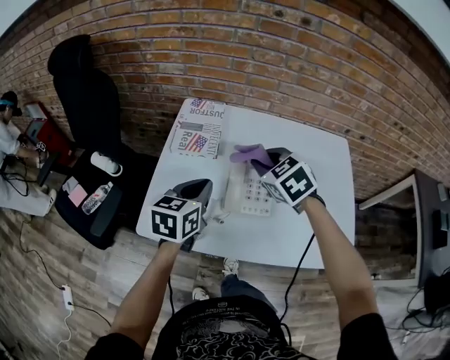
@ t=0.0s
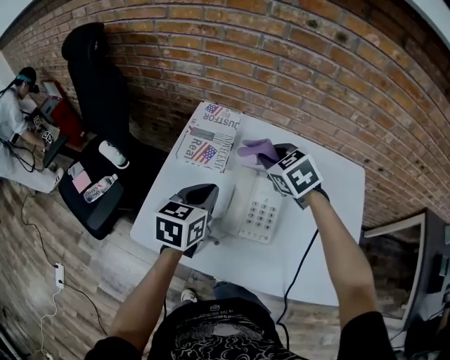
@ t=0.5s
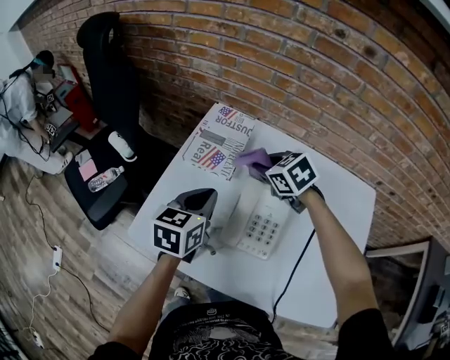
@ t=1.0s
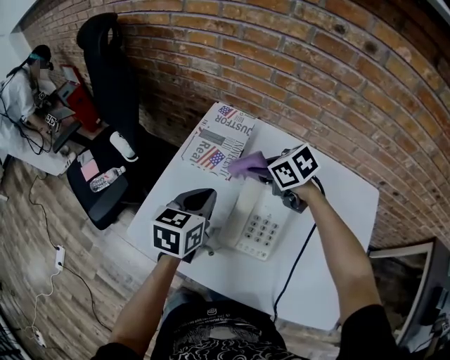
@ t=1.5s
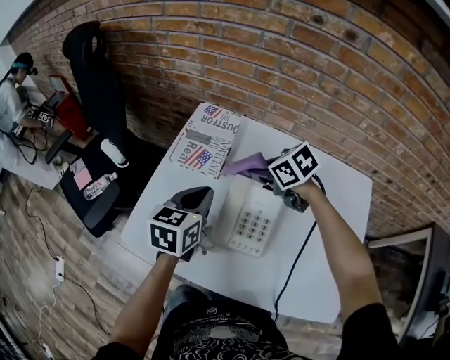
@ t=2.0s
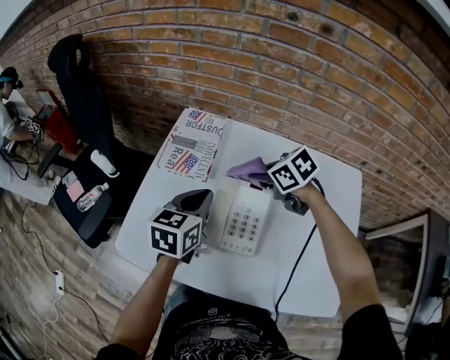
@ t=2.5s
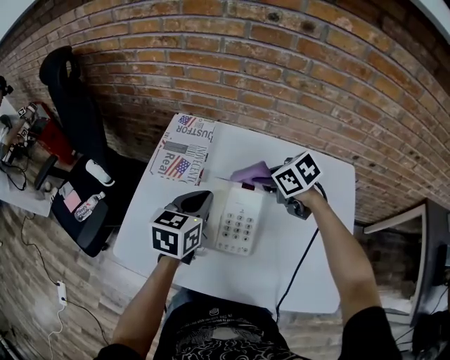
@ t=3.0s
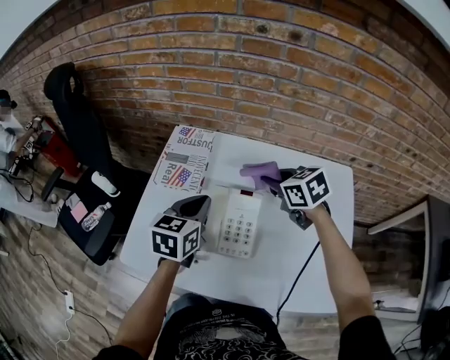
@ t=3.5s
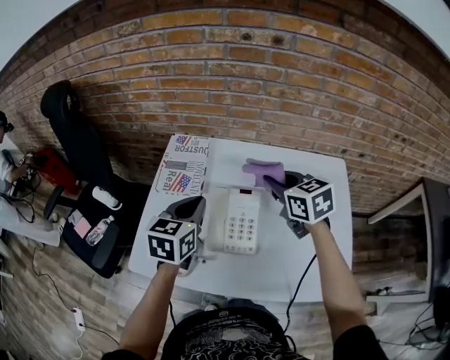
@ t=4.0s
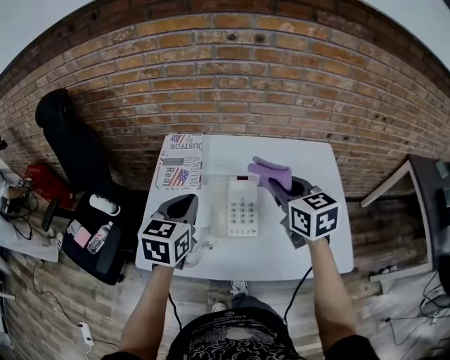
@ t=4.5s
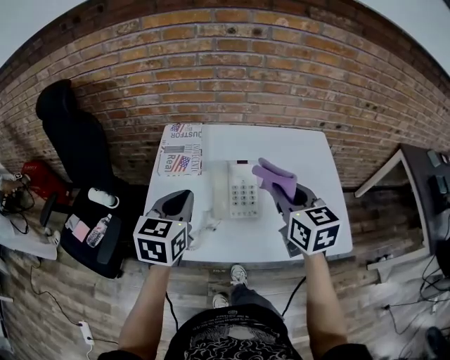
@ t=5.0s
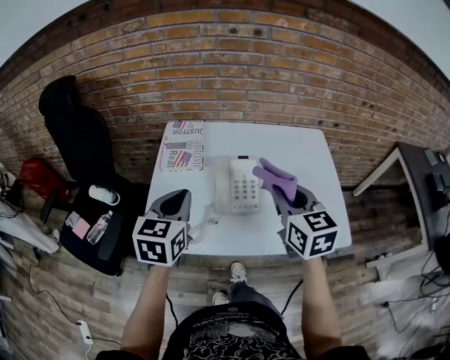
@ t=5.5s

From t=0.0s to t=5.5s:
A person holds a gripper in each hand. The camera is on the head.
From t=0.0s to t=2.0s: The left gripper moves about 10 cm; the right gripper ends up roughly 15 cm from where it was, and swivels approximately 30 degrees.
From t=2.0s to t=3.5s: The right gripper is displaced to the right and upward by about 10 cm, and rotates some 20 degrees, while the left gripper changes place by approximately 5 cm.
From t=3.5s to t=5.5s: The right gripper shifts some 25 cm backward and upward, and changes its angle by approximately 40 degrees; the left gripper travels backward, to the left and upward by roughly 20 cm.

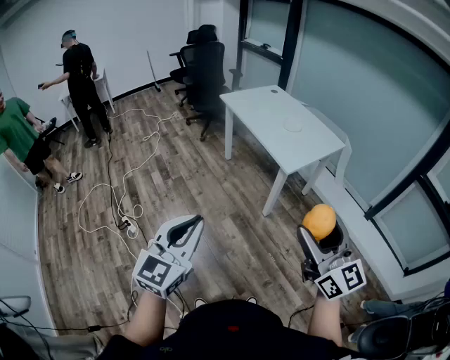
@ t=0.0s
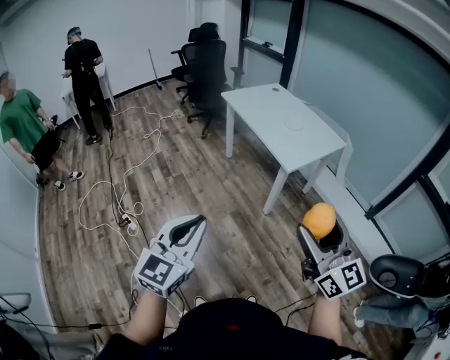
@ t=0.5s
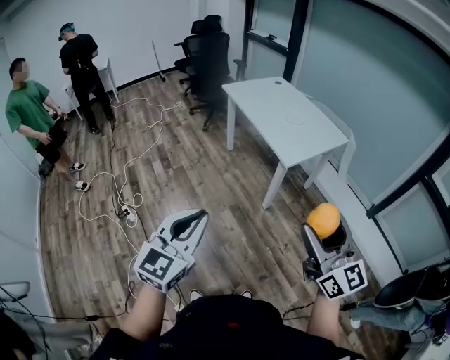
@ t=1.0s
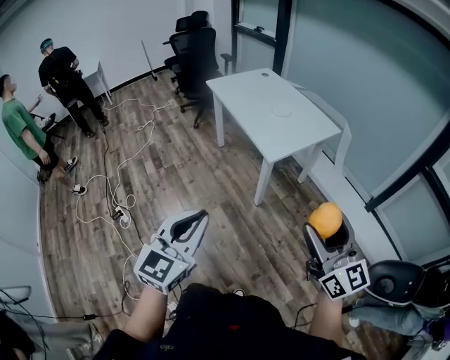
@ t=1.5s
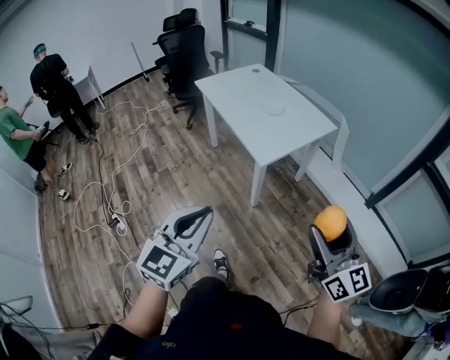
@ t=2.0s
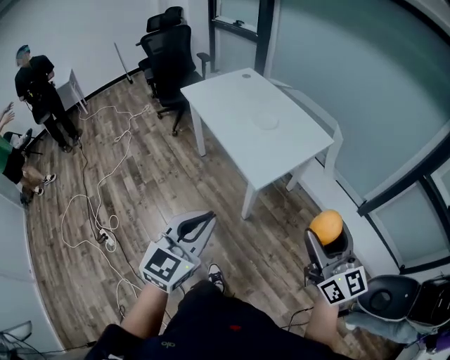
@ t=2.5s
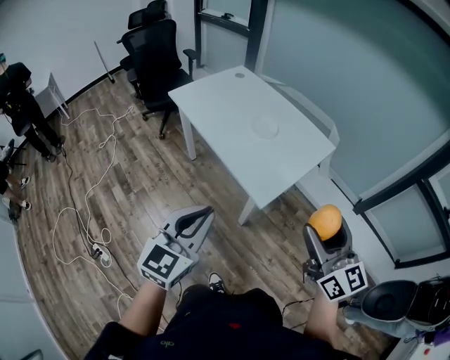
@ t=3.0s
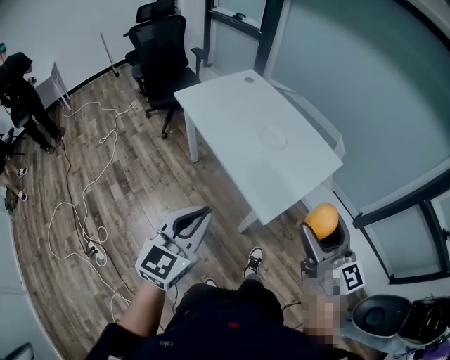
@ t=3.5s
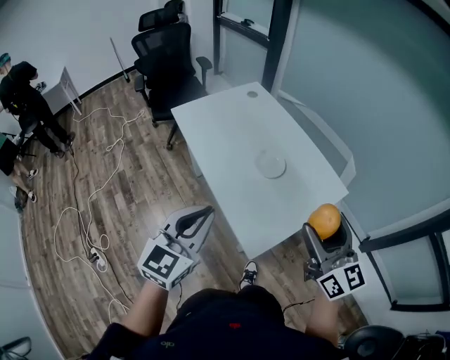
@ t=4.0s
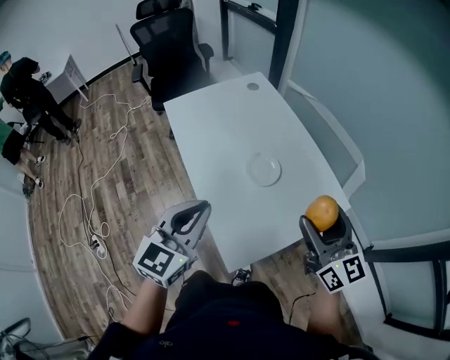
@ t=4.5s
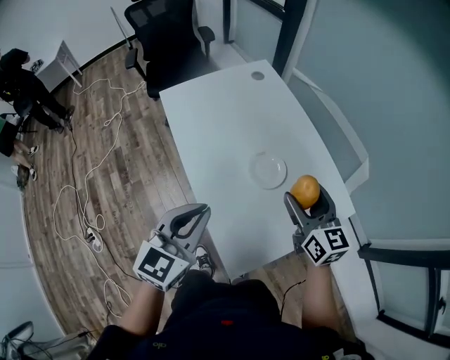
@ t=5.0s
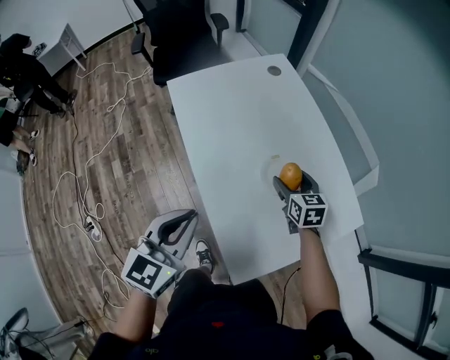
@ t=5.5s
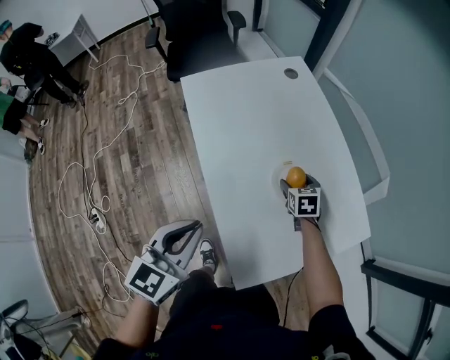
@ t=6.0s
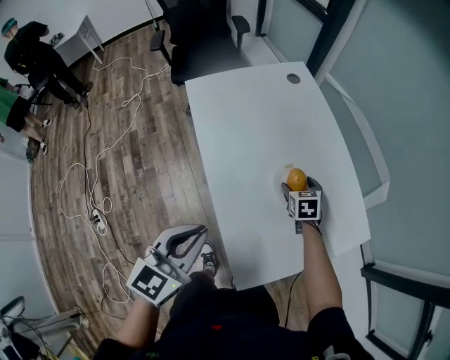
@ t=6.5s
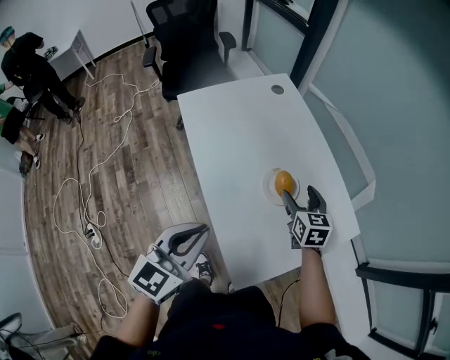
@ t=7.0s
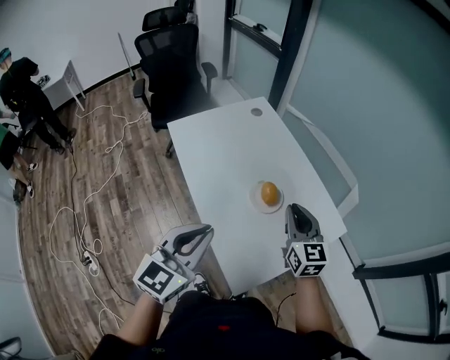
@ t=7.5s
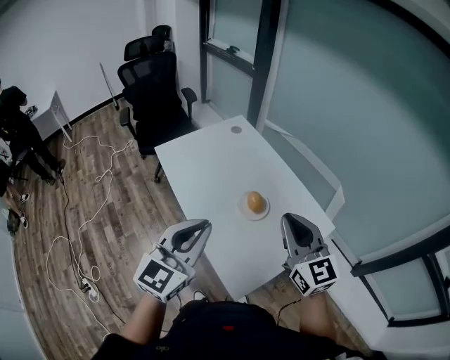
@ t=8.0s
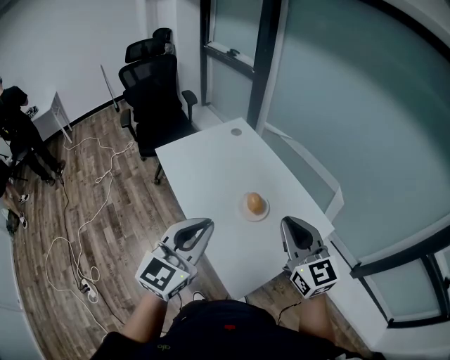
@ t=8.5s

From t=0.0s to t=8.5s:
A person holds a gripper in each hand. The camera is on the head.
From t=0.0s to t=2.0s: The grippers both shift to the right and forward by roughly 25 cm.
From t=2.0s to t=4.0s: The two grippers travel together, forward, about 50 cm.
From t=4.0s to t=6.5s: The left gripper is displaced forward and downward by roughly 20 cm; the right gripper shifts about 50 cm forward and downward, and points its fingers some 50 degrees further downward.
From t=6.5s to t=8.5s: The right gripper travels upward and backward by about 50 cm, tips its fingers upward by roughly 50 degrees, and closes up; the left gripper travels upward by some 15 cm, and rotates some 20 degrees.

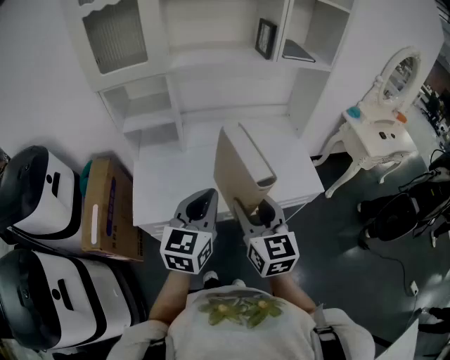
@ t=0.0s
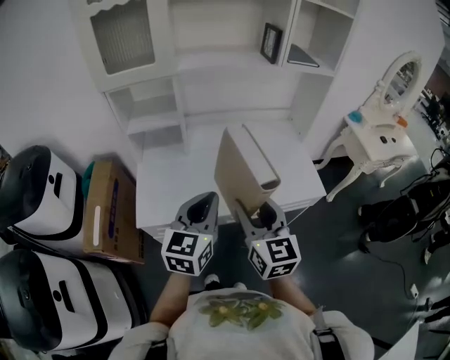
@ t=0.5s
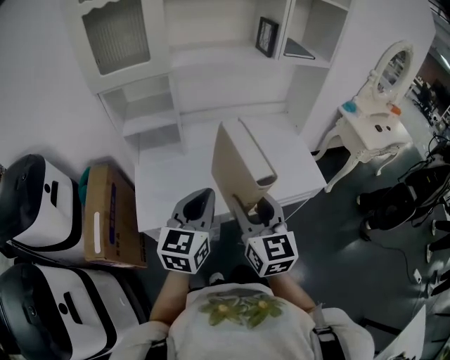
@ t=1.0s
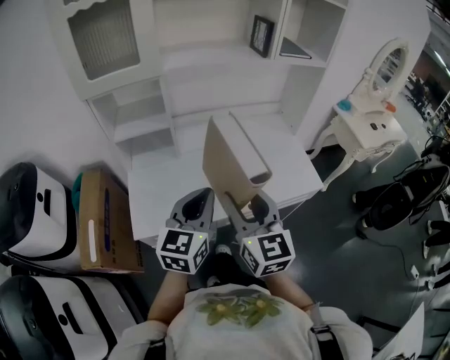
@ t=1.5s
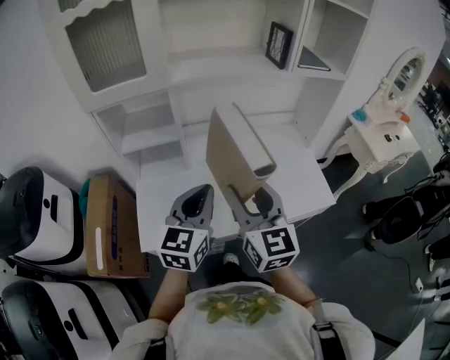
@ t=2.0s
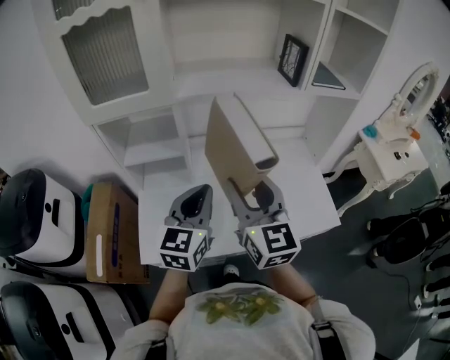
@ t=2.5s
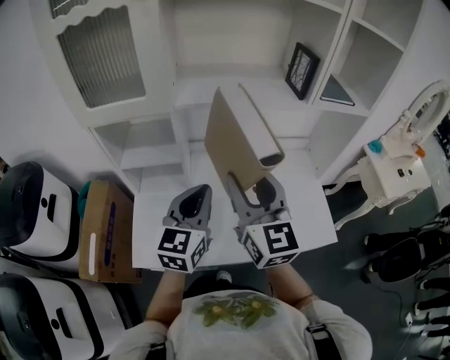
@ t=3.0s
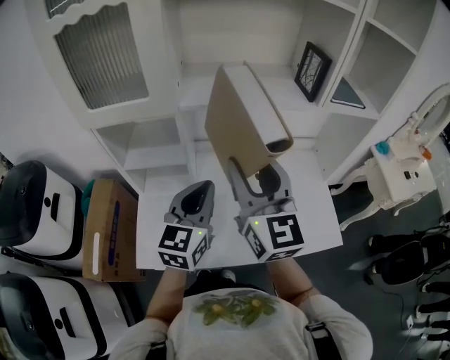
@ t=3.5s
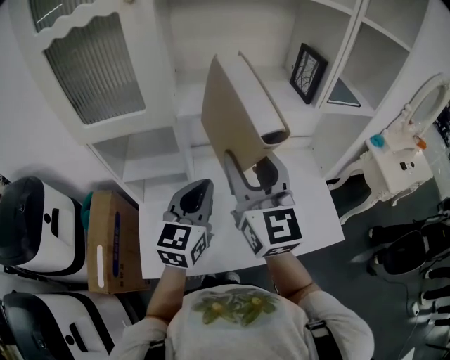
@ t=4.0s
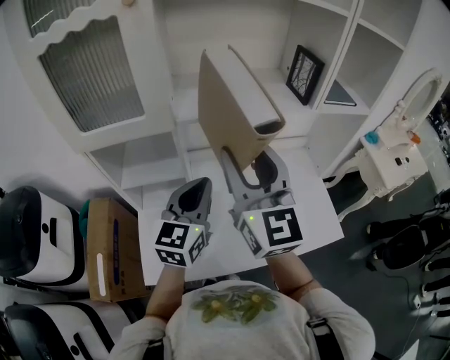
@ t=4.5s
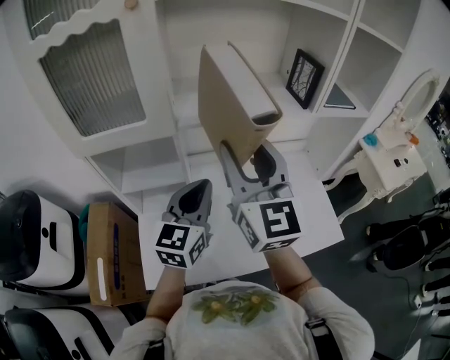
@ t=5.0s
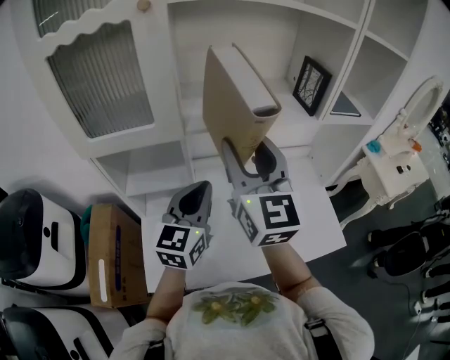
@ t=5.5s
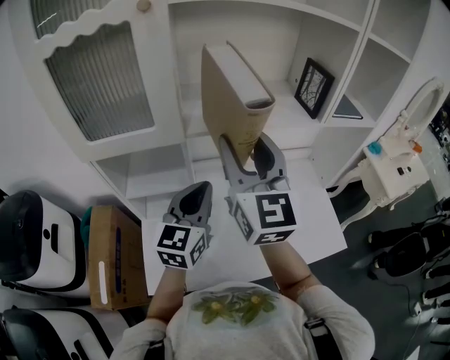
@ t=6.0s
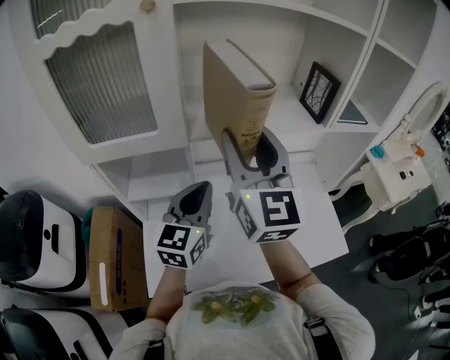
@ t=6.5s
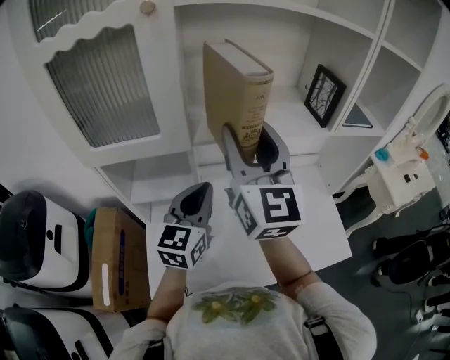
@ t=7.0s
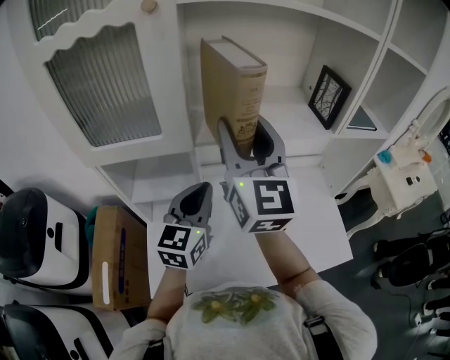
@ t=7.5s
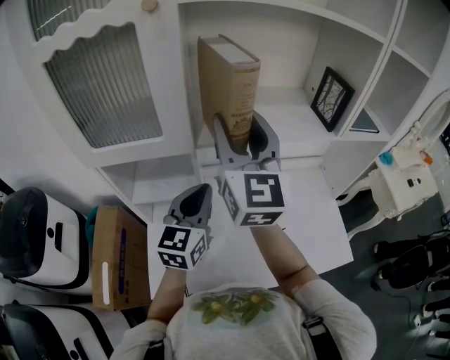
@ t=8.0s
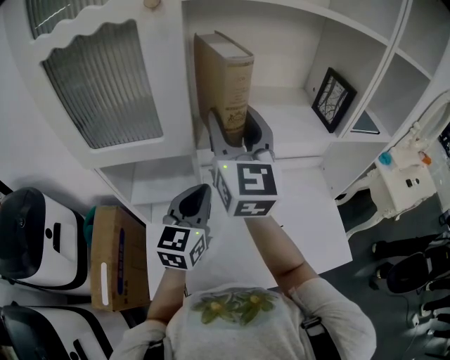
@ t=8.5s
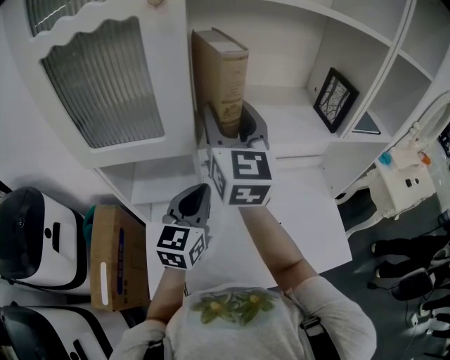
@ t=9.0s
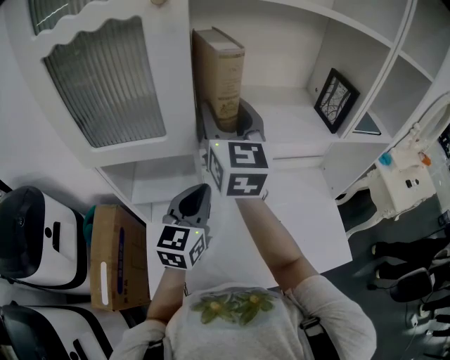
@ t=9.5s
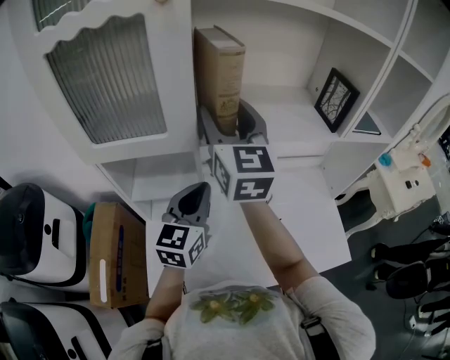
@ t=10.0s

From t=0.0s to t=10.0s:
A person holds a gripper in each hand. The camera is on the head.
From t=0.0s to t=2.0s: The grippers both shift forward and to the left by roughly 15 cm.
From t=2.0s to t=4.0s: The right gripper is displaced forward and upward by about 20 cm, while the left gripper is displaced forward by approximately 15 cm.
From t=4.0s to t=6.0s: The right gripper shifts by about 5 cm.
From t=6.0s to t=8.0s: The right gripper shifts some 5 cm forward.
From t=8.0s to t=10.0s: The right gripper shifts by roughly 5 cm.

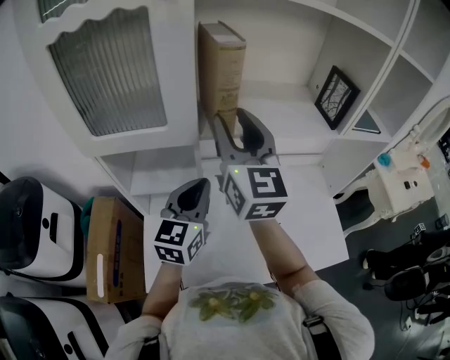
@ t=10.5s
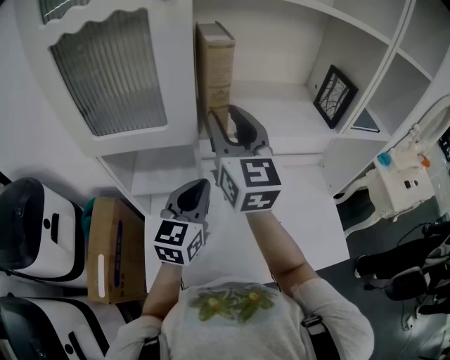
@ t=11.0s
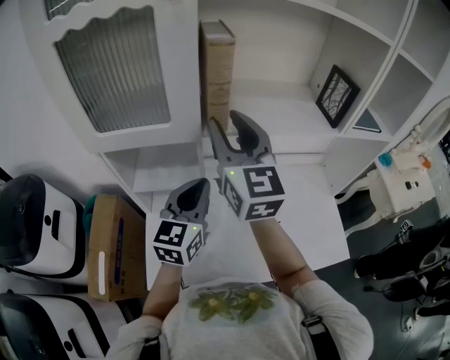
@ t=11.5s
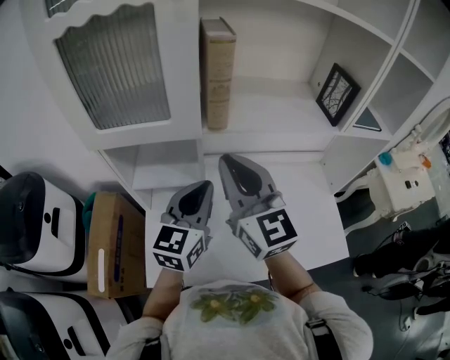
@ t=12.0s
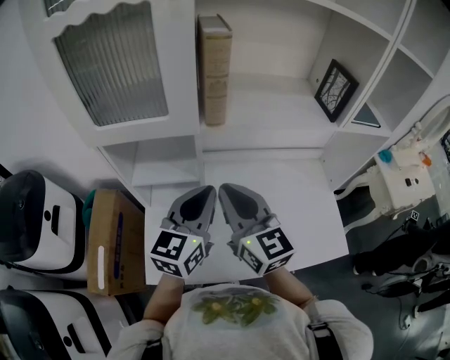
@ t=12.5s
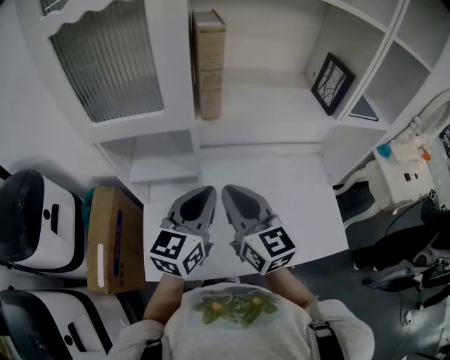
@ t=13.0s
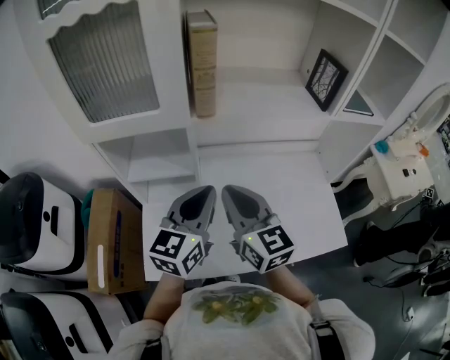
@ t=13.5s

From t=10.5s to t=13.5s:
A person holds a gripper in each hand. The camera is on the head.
From t=10.5s to t=12.0s: The right gripper travels backward and downward by approximately 10 cm, and closes.
From t=12.0s to t=13.5s: The right gripper travels downward and backward by roughly 10 cm; the left gripper changes place by approximately 5 cm.
